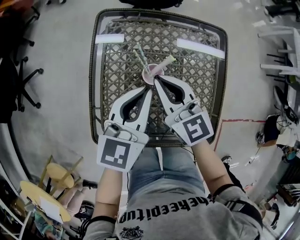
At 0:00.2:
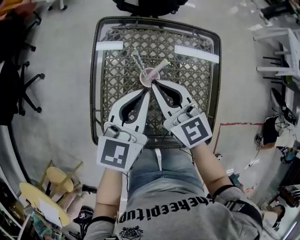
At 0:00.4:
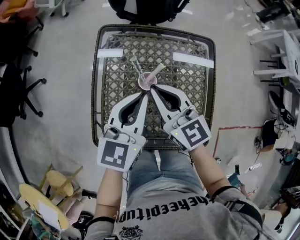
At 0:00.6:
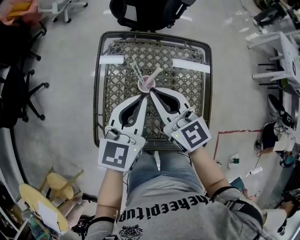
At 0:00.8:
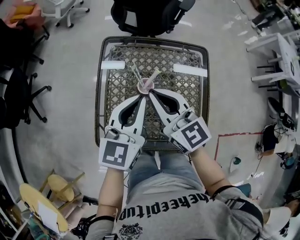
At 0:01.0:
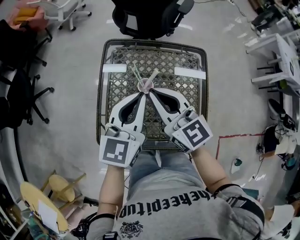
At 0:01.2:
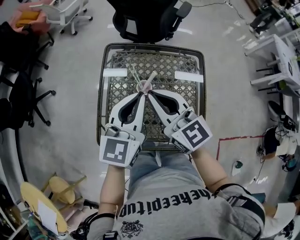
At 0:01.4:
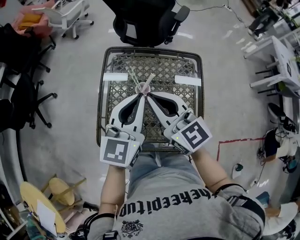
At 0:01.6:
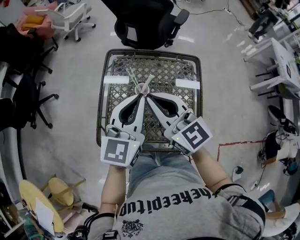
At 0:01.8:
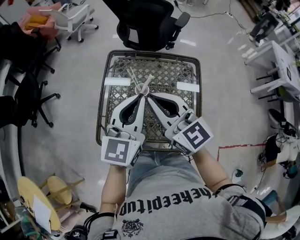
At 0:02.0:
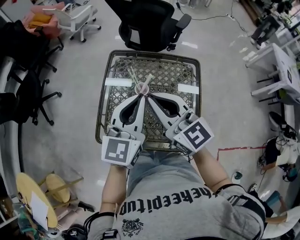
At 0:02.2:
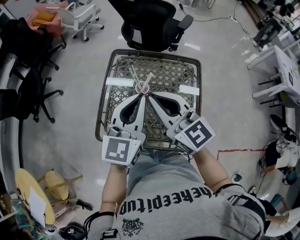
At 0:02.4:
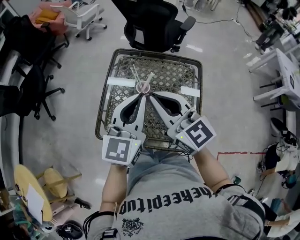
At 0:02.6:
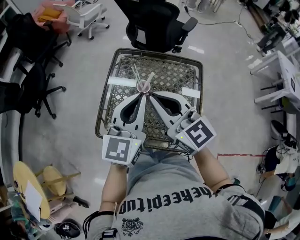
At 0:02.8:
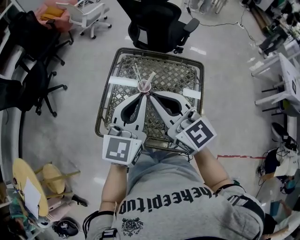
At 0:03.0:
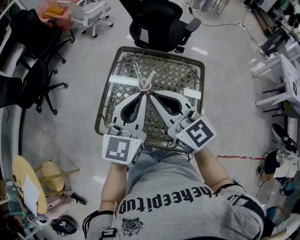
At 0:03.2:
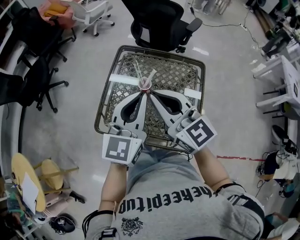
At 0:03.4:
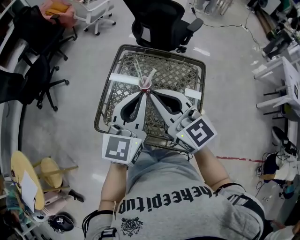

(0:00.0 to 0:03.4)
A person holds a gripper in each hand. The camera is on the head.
0:00.0 - 0:01.6: The left gripper shifts some 15 cm upward, while the right gripper goes some 20 cm upward and backward.
0:01.6 - 0:03.4: The grippers both shift backward by approximately 5 cm.

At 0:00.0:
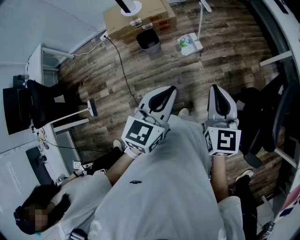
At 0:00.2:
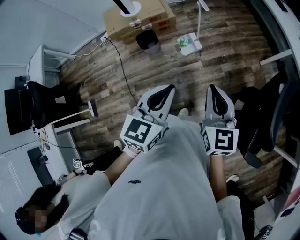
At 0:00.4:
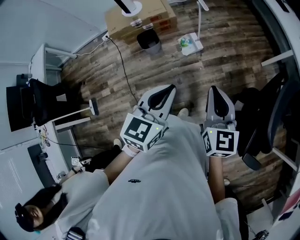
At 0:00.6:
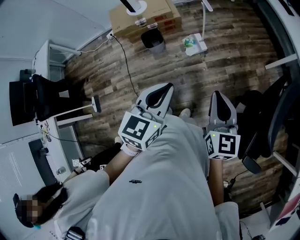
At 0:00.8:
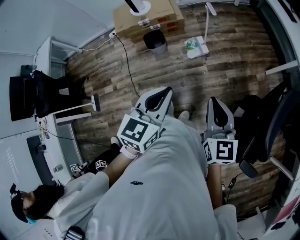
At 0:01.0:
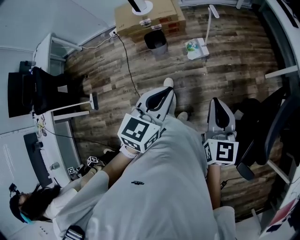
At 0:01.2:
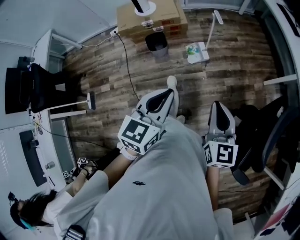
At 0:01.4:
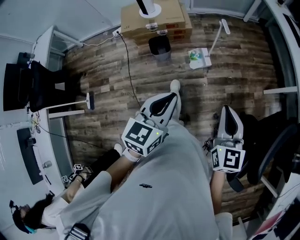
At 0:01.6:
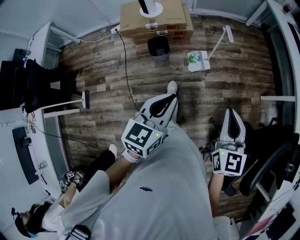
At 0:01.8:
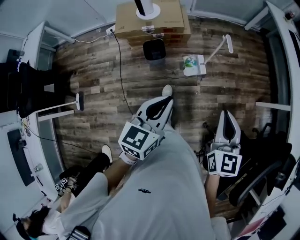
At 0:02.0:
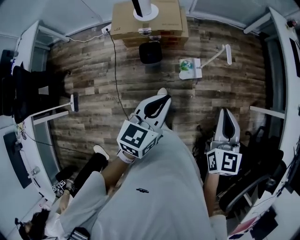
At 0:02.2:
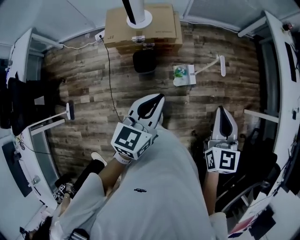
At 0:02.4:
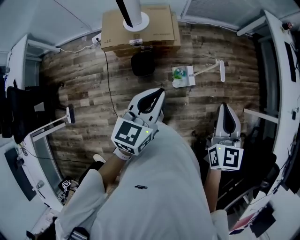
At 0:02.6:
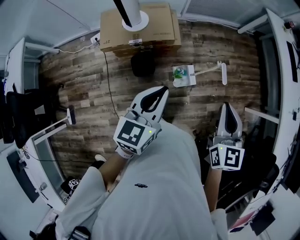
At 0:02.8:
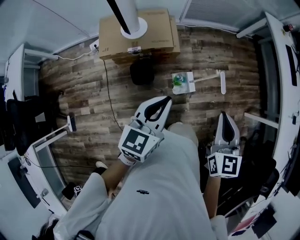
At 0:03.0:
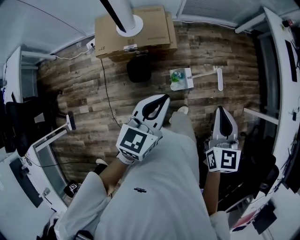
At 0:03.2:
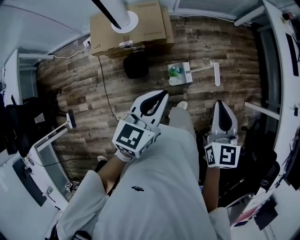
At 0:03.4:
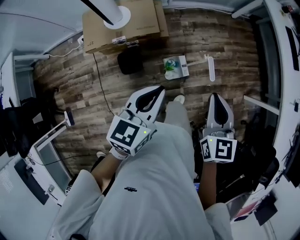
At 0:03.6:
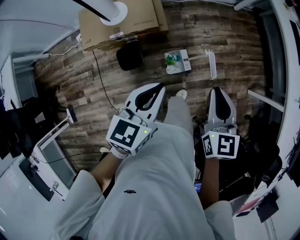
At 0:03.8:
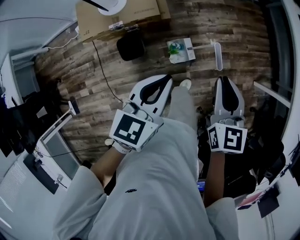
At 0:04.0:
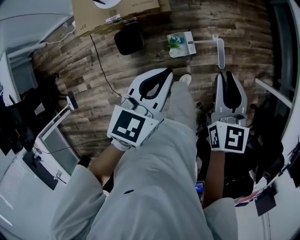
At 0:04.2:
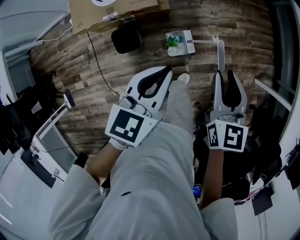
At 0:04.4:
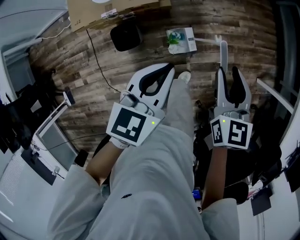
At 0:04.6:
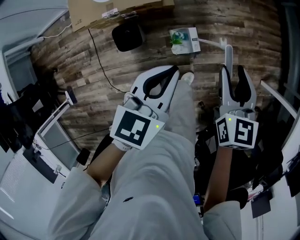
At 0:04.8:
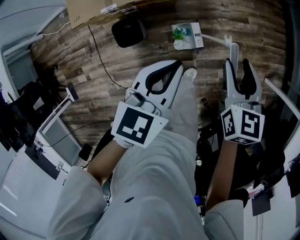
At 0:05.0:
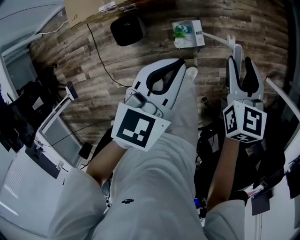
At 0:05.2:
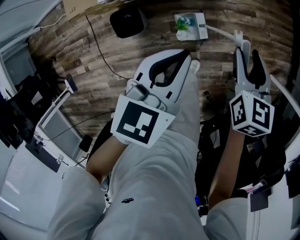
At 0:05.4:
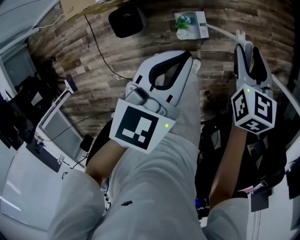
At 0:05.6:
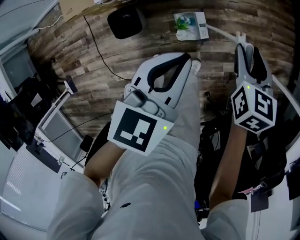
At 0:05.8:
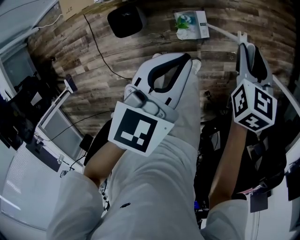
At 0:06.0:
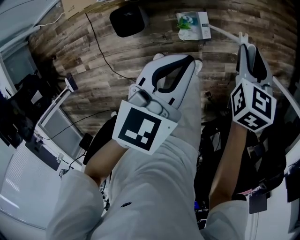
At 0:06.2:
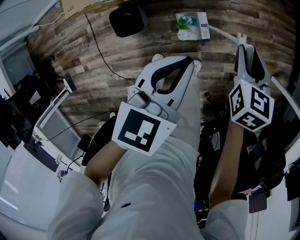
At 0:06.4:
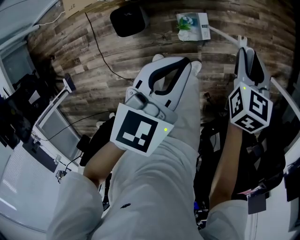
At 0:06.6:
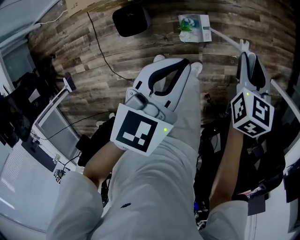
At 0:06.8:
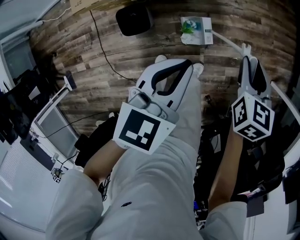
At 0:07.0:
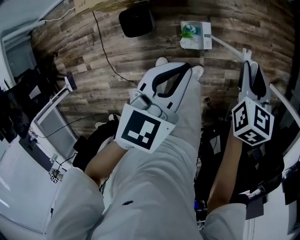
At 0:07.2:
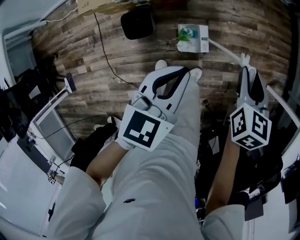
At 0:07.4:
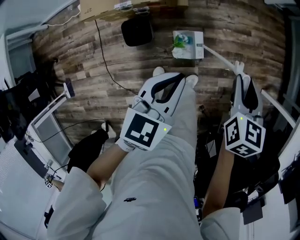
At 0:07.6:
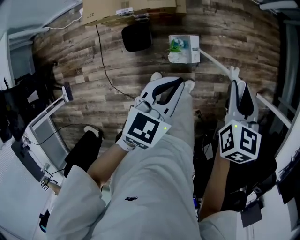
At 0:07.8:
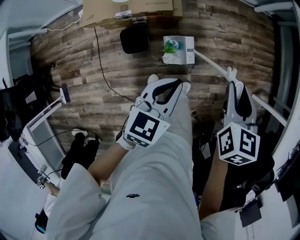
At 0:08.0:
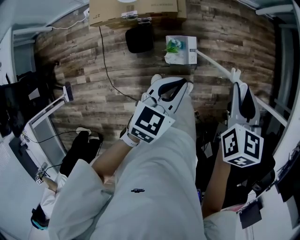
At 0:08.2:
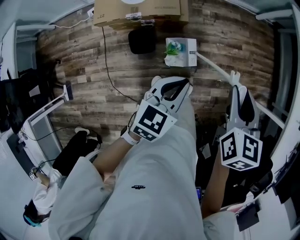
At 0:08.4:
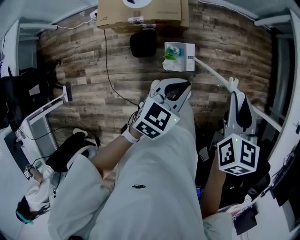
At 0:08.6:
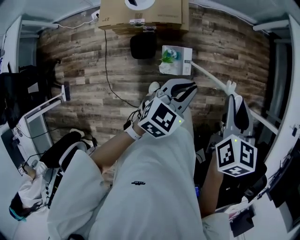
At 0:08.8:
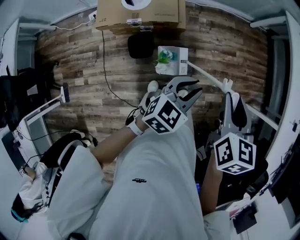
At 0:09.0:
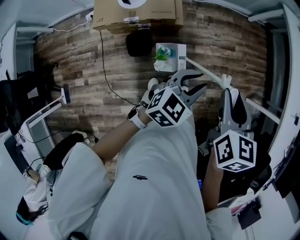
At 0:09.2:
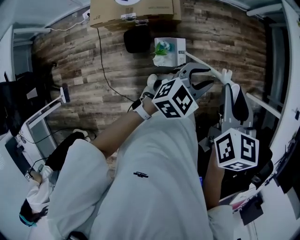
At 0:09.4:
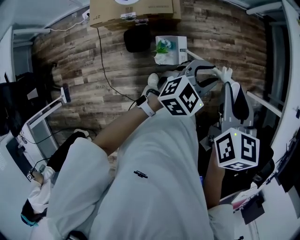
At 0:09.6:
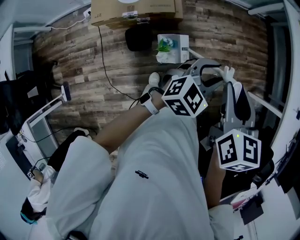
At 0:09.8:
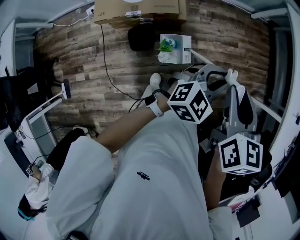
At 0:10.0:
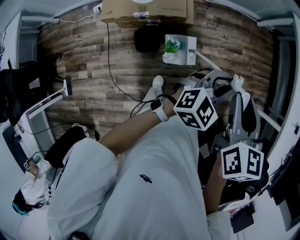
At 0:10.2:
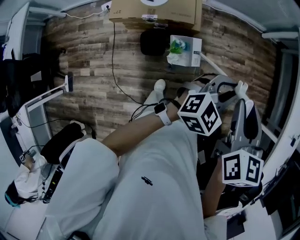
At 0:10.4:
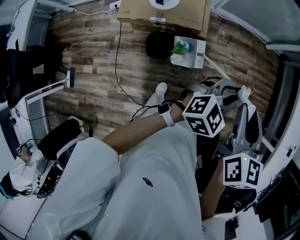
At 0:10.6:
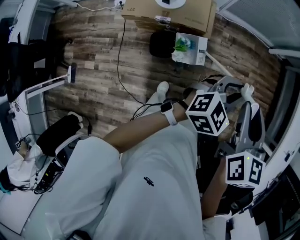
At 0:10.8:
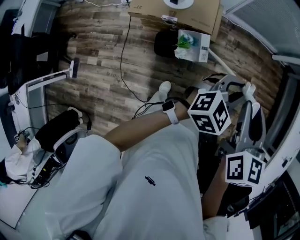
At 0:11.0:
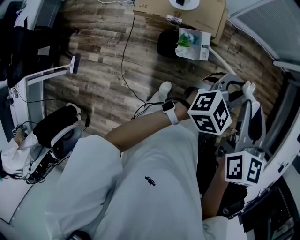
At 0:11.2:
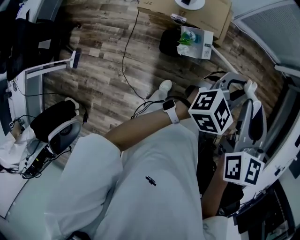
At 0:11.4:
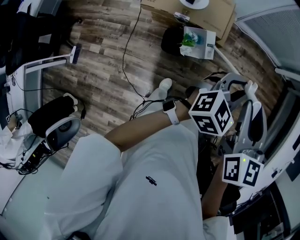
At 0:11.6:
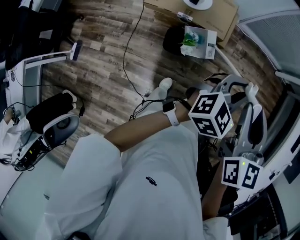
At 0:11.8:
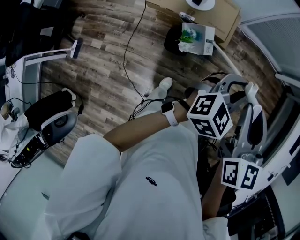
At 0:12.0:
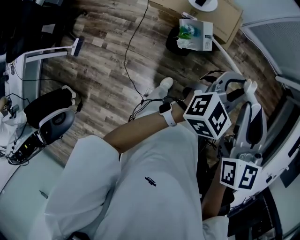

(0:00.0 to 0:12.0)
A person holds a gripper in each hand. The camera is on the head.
0:00.0 - 0:01.6: The left gripper travels forward and to the left by roughly 10 cm. Meanwhile the right gripper is displaced forward by roughly 10 cm.
0:01.6 - 0:03.0: The grippers both shift forward by some 35 cm.
0:03.0 - 0:04.4: The two grippers go roughly 20 cm downward, forward and to the right. The right gripper opens up.
0:04.4 - 0:06.0: The right gripper is displaced downward and forward by about 20 cm. The left gripper goes about 10 cm downward.
0:06.0 - 0:07.6: The left gripper is displaced backward and upward by roughly 10 cm, while the right gripper heads upward and backward, covering some 20 cm.
0:07.6 - 0:09.0: The left gripper is displaced upward and to the right by about 10 cm, changes its angle by about 20 degrees, and opens, while the right gripper travels upward and backward by approximately 15 cm.
0:09.0 - 0:10.4: The right gripper shifts approximately 5 cm to the left. Meanwhile the left gripper is displaced forward by some 5 cm.
0:10.4 - 0:12.0: Both grippers move to the left, approximately 15 cm. The right gripper swivels approximately 30 degrees. Meanwhile the left gripper swivels some 20 degrees.

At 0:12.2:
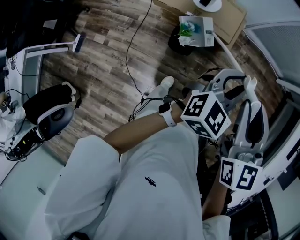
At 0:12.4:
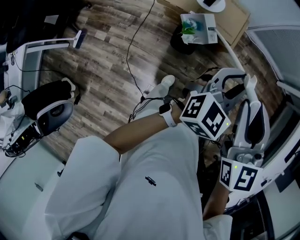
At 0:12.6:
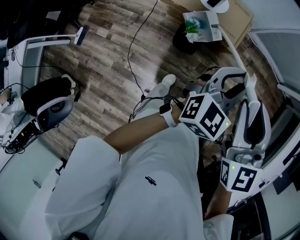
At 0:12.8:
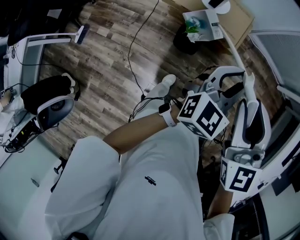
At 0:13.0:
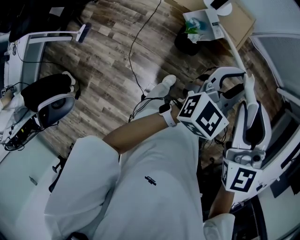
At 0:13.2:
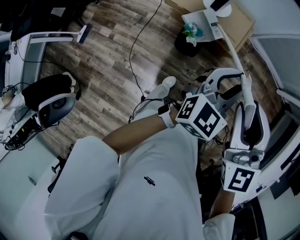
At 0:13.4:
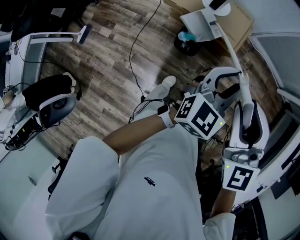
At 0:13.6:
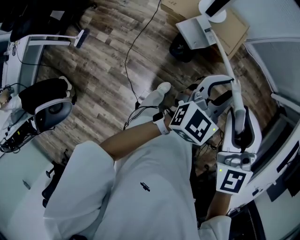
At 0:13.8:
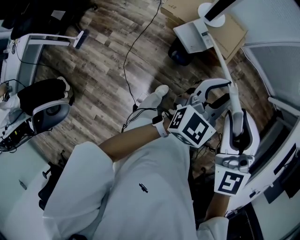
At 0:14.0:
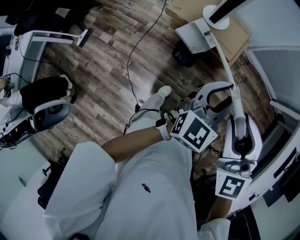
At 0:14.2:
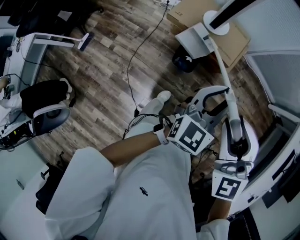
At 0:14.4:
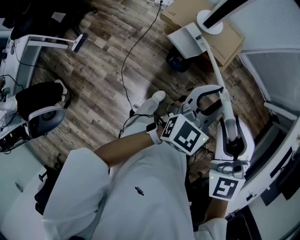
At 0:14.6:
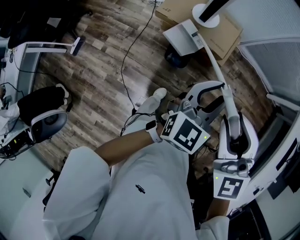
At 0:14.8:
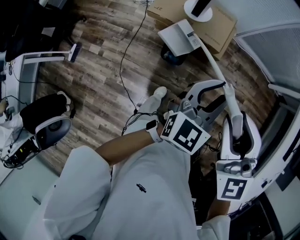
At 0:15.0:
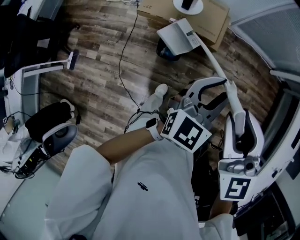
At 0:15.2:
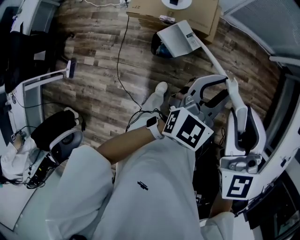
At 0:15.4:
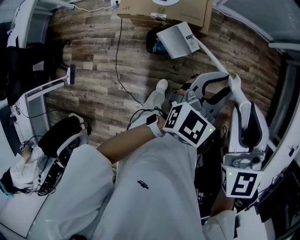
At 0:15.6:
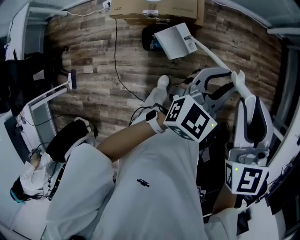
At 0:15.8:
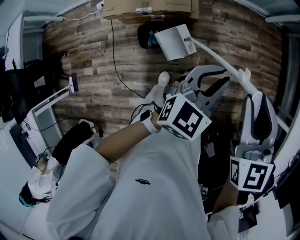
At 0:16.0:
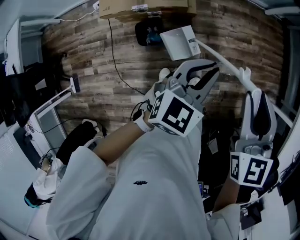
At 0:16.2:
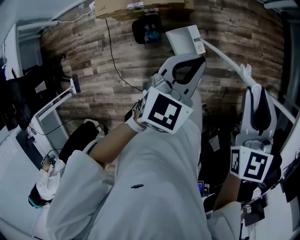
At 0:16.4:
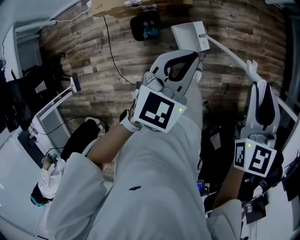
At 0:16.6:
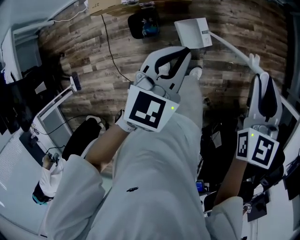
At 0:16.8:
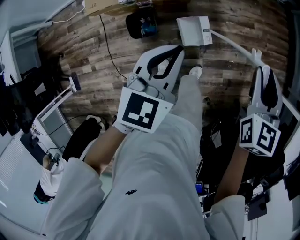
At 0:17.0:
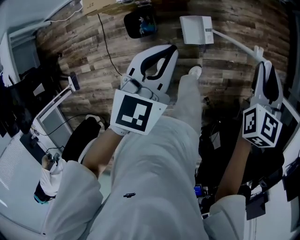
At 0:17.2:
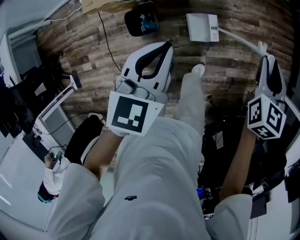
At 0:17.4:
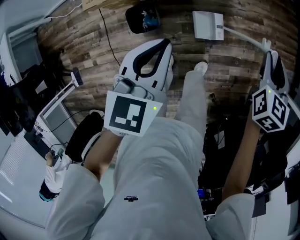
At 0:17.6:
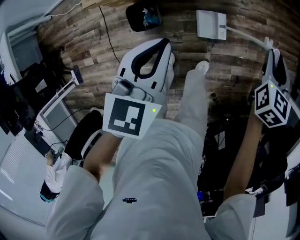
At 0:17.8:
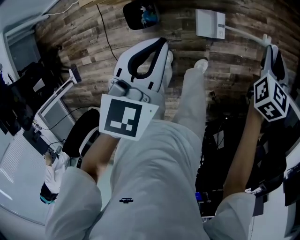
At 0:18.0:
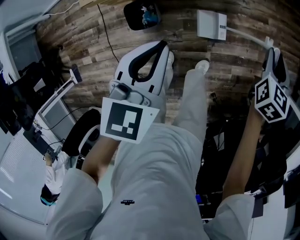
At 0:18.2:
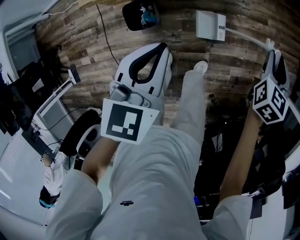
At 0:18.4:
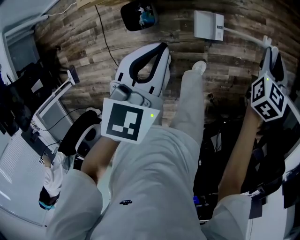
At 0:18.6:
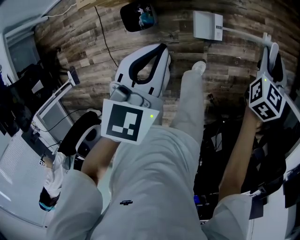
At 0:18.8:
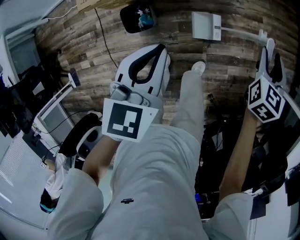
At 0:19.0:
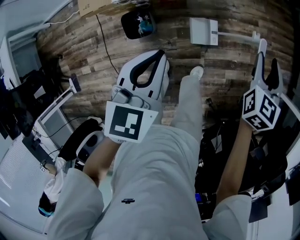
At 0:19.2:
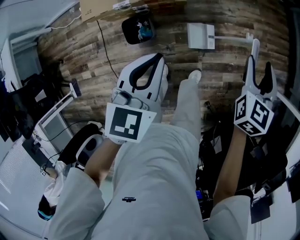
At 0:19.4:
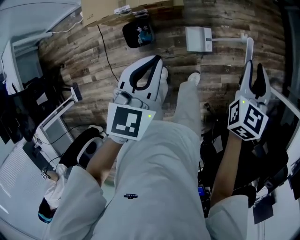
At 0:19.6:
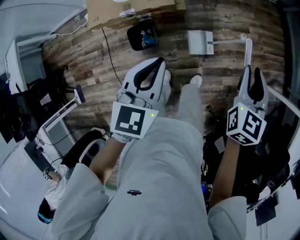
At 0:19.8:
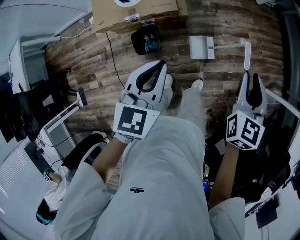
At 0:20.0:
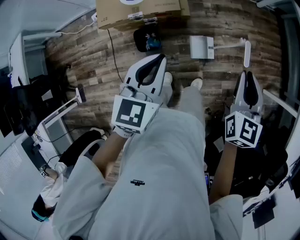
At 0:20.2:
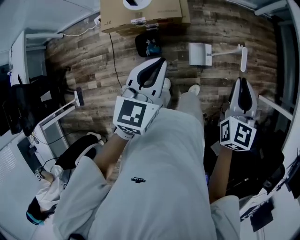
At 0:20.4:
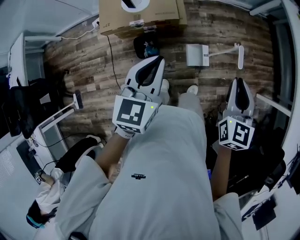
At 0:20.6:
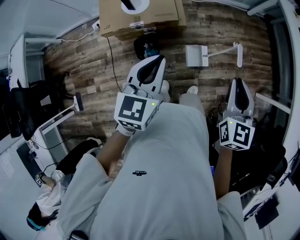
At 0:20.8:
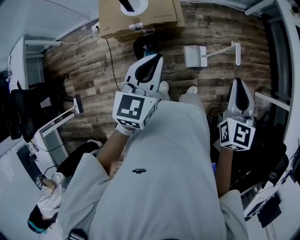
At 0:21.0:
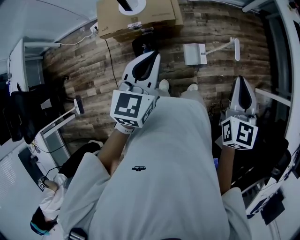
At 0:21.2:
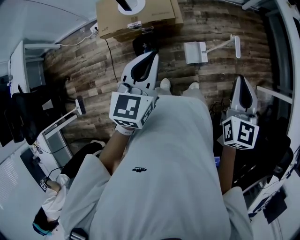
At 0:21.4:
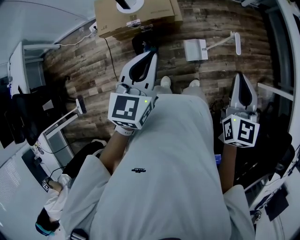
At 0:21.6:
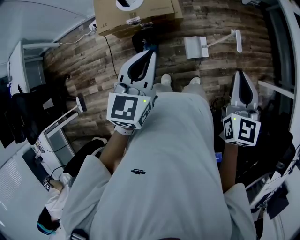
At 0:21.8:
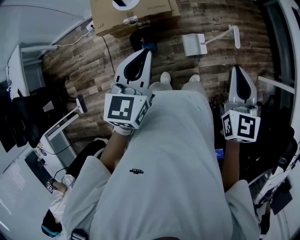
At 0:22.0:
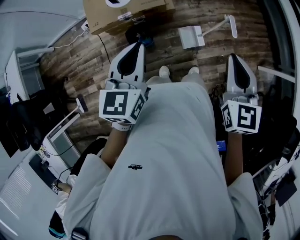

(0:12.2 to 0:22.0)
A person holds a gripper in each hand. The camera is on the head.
0:12.2 - 0:13.6: The grippers both shift to the left by approximately 5 cm. The right gripper swivels some 30 degrees.
0:13.6 - 0:15.0: The left gripper changes place by some 5 cm. The right gripper heads to the right, covering roughly 5 cm.
0:15.0 - 0:16.4: The left gripper shifts by some 15 cm, changes its angle by about 30 degrees, and closes up. The right gripper ends up some 30 cm from where it was, and rotates approximately 40 degrees.
0:16.4 - 0:17.8: The left gripper heads downward and to the left, covering about 10 cm. The right gripper travels downward and forward by about 30 cm.
0:17.8 - 0:19.2: The right gripper shifts some 10 cm upward, and opens its fingers; the left gripper changes place by some 5 cm.
0:19.2 - 0:20.6: The grippers both shift upward, backward and to the left by some 20 cm. The right gripper closes its fingers.
0:20.6 - 0:22.0: The grippers move only a little.